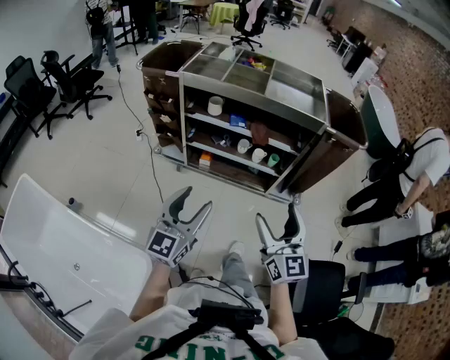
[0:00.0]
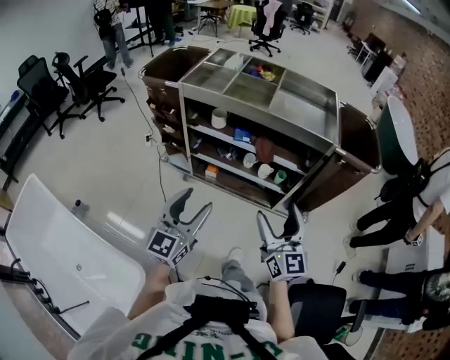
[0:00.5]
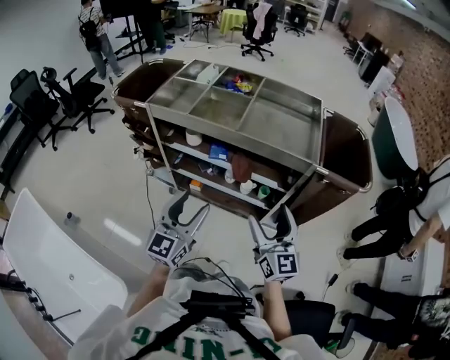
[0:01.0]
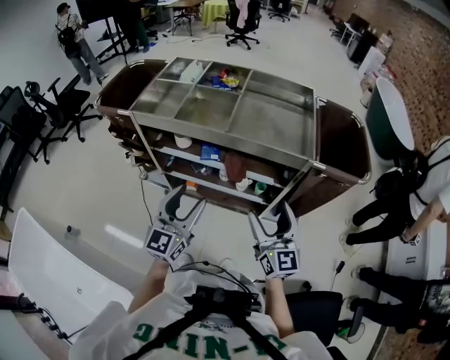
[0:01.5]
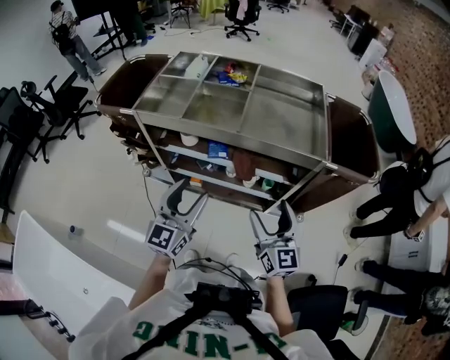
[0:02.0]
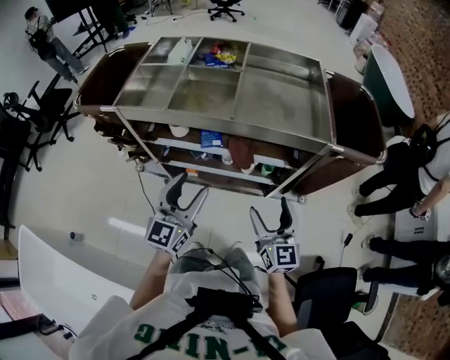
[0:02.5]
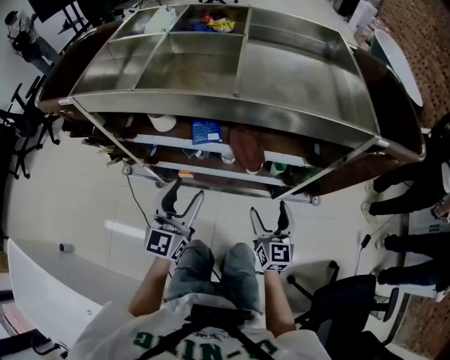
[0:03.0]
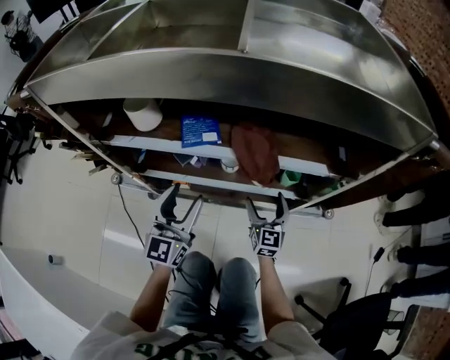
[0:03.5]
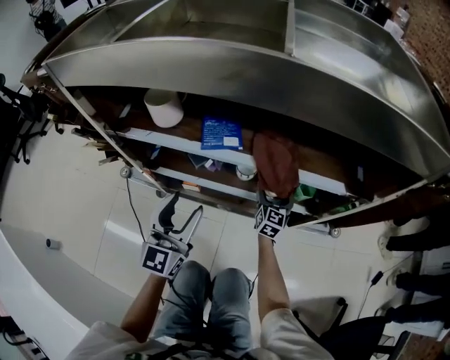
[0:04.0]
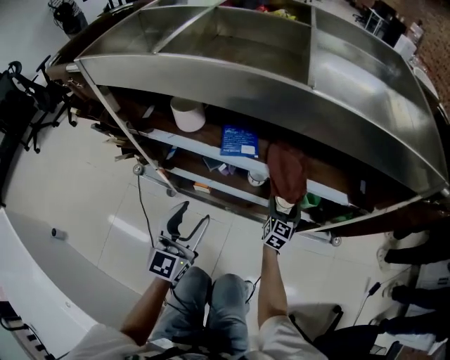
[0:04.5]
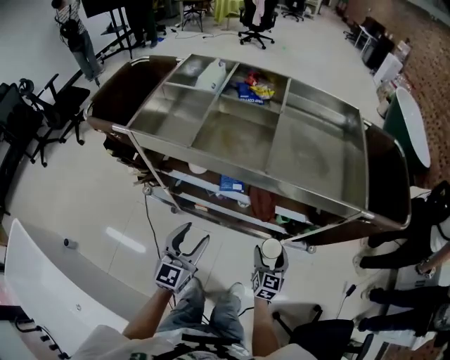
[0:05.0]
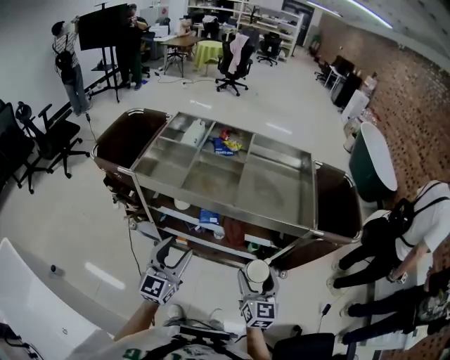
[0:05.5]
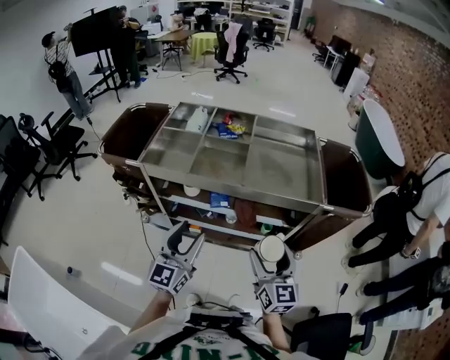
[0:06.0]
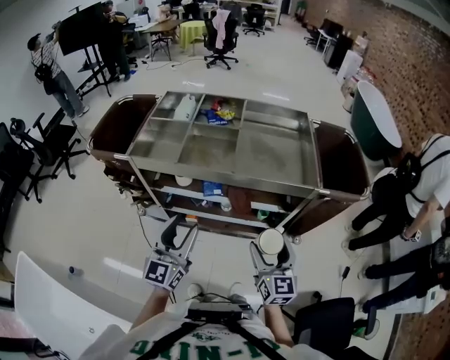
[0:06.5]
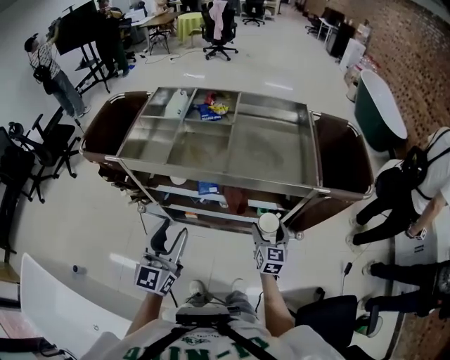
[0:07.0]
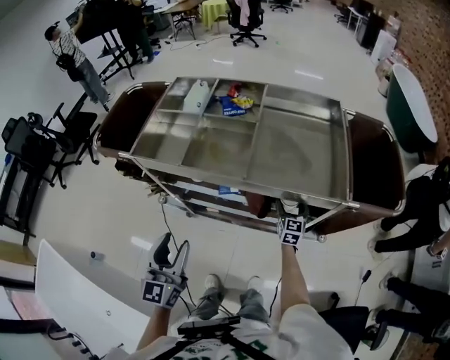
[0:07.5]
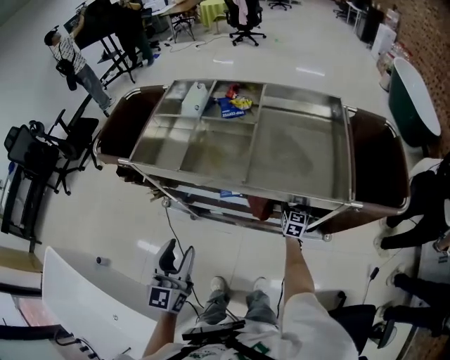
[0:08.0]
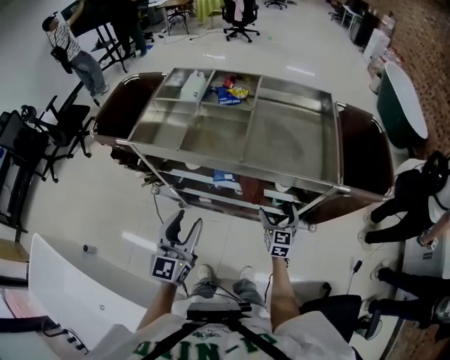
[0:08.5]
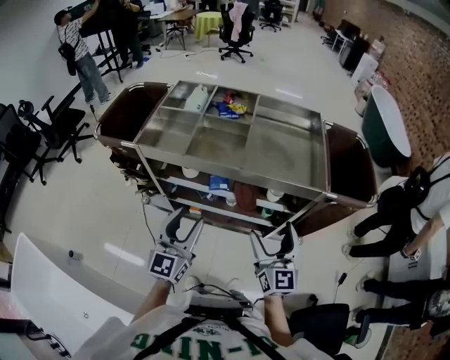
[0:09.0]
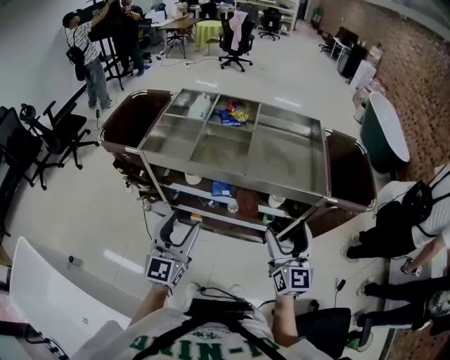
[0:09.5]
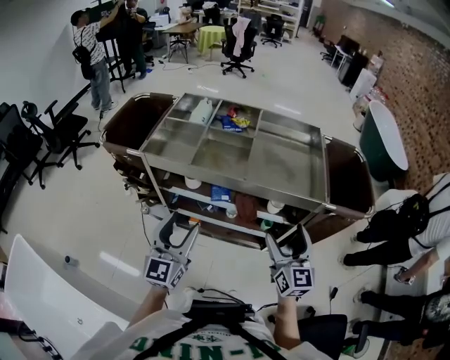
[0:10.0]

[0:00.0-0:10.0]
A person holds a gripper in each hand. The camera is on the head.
0:00.0 to 0:02.0: Both grippers travel together forward, roughly 30 cm.
0:02.0 to 0:04.0: The right gripper goes some 60 cm downward and forward, and turns by approximately 30 degrees; the left gripper shifts some 40 cm downward.
0:04.0 to 0:06.0: The left gripper shifts some 40 cm upward. Meanwhile the right gripper shifts roughly 70 cm upward and backward.
0:06.0 to 0:08.0: The left gripper heads downward, covering about 5 cm. Meanwhile the right gripper travels downward and forward by some 40 cm, and rotates roughly 20 degrees.
0:08.0 to 0:10.0: The right gripper moves upward and backward, some 40 cm, and swivels approximately 30 degrees, while the left gripper moves upward, some 5 cm.

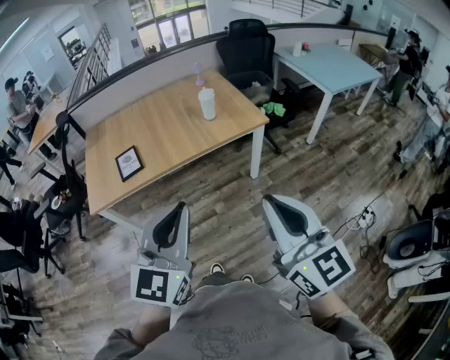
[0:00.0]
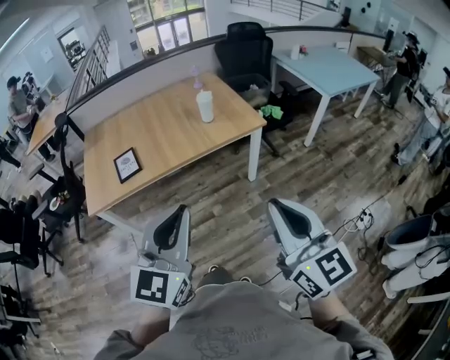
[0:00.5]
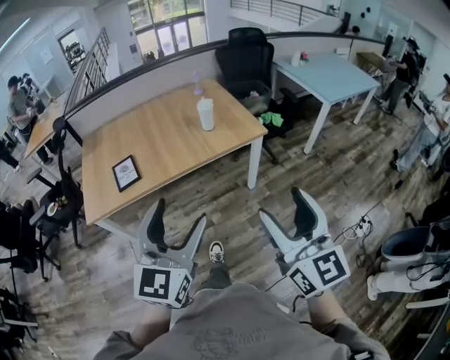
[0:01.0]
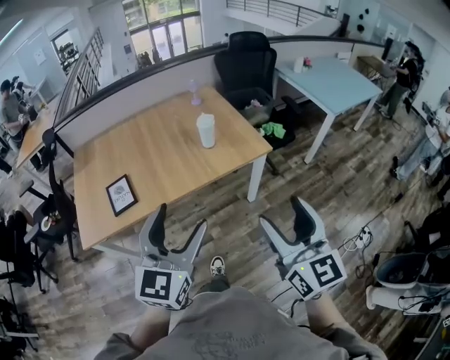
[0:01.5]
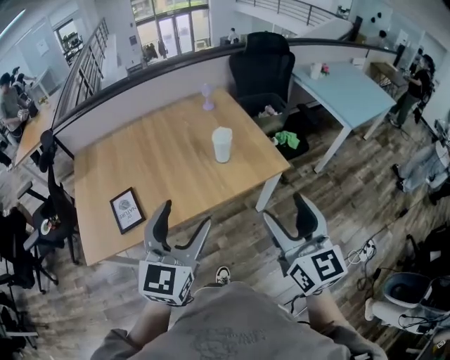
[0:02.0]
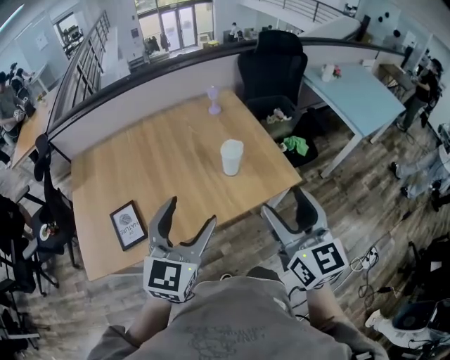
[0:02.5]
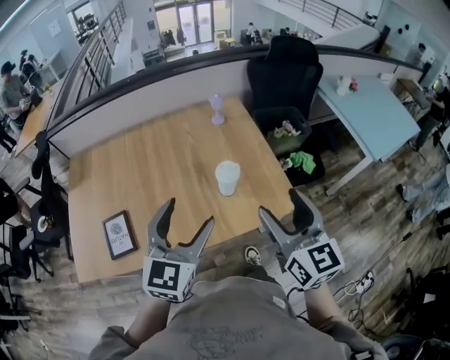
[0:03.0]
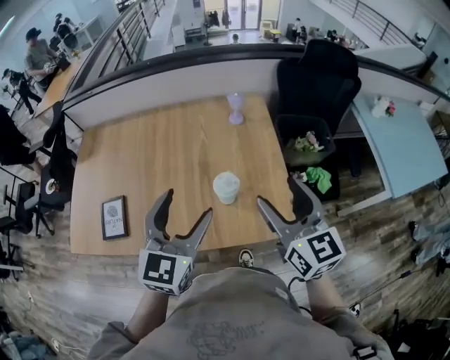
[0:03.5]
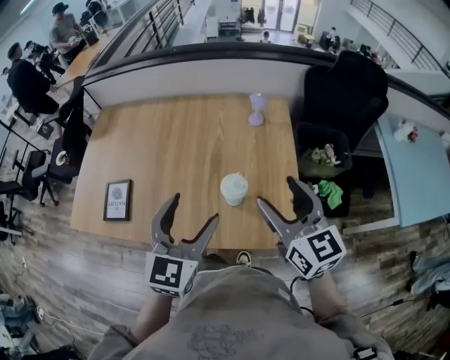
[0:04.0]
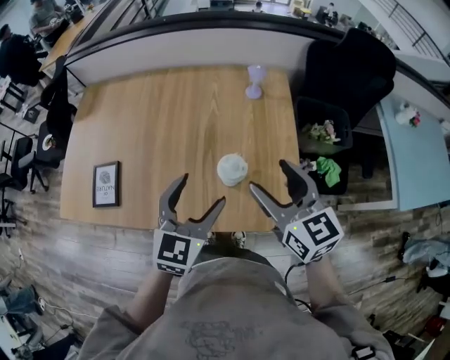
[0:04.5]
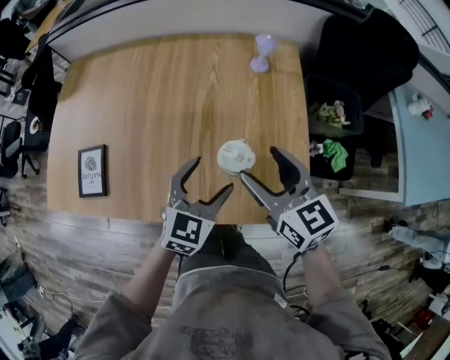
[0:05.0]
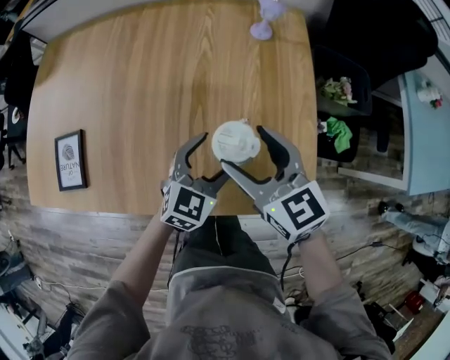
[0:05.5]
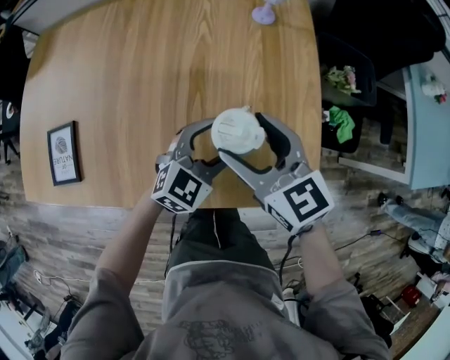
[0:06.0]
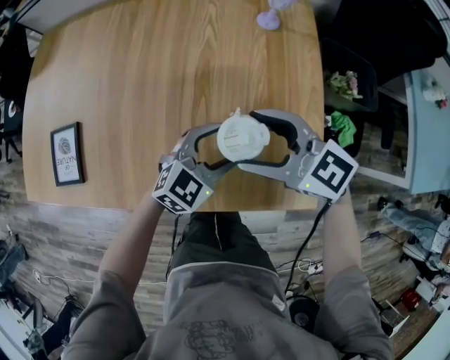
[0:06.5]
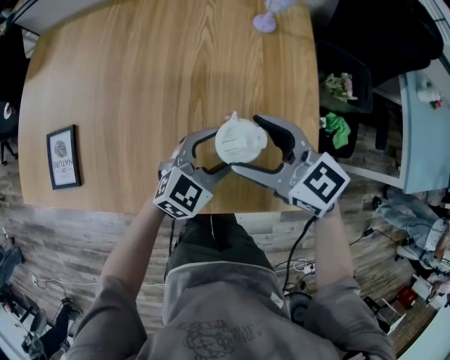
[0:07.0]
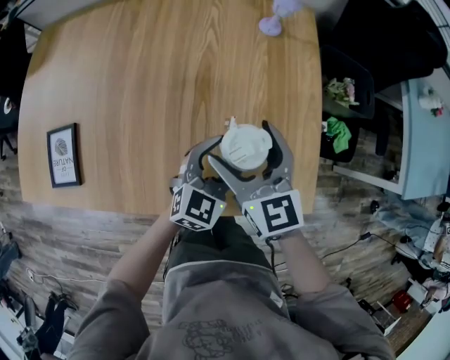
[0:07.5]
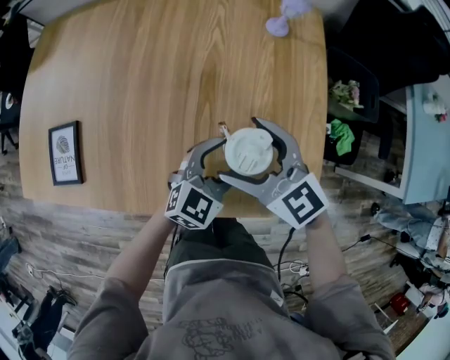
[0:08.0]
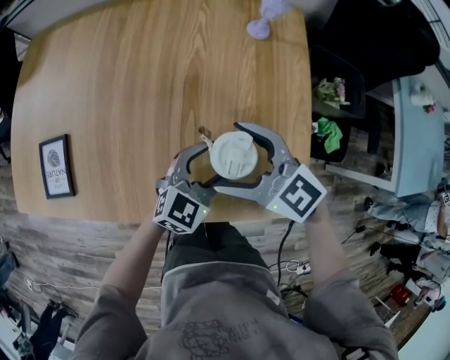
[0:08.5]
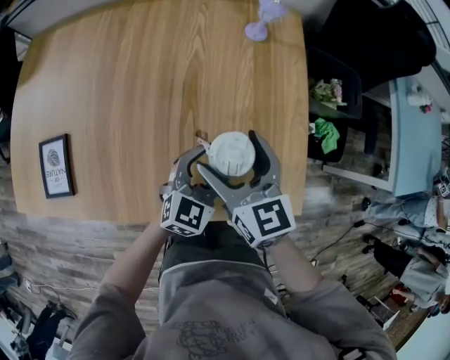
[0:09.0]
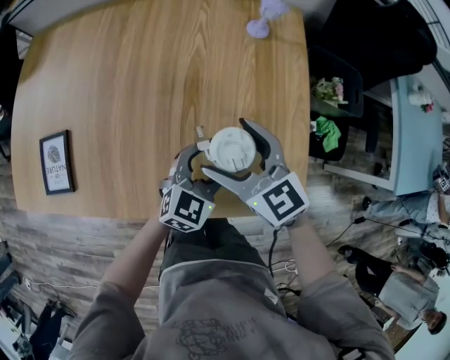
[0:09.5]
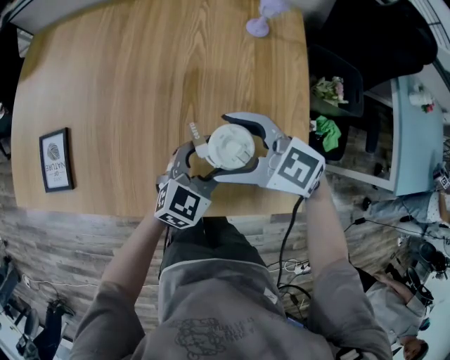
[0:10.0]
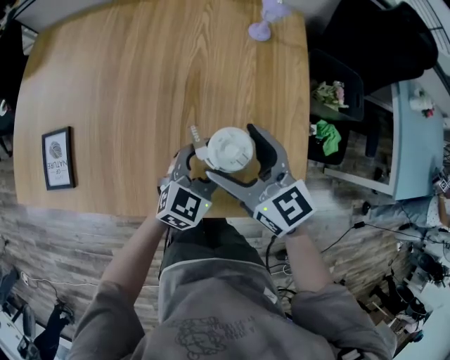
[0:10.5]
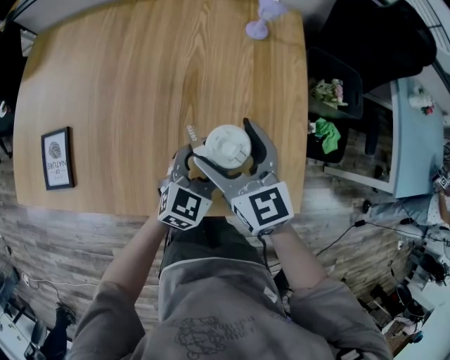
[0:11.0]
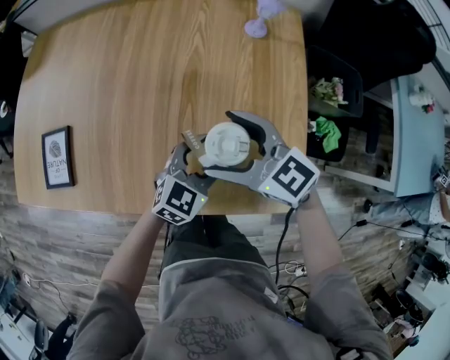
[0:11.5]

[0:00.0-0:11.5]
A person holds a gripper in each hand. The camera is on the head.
0:00.0 to 0:02.0: Both grippers move forward, approximately 30 cm. The right gripper opens up. The left gripper opens.
0:02.0 to 0:04.0: The left gripper ends up some 30 cm from where it was, and turns by roughly 30 degrees. Meanwhile the right gripper ends up some 40 cm from where it was, and rotates approximately 40 degrees.
0:04.0 to 0:06.0: The right gripper is displaced downward and to the left by approximately 25 cm. The left gripper heads downward, covering some 30 cm, and swivels roughly 30 degrees.

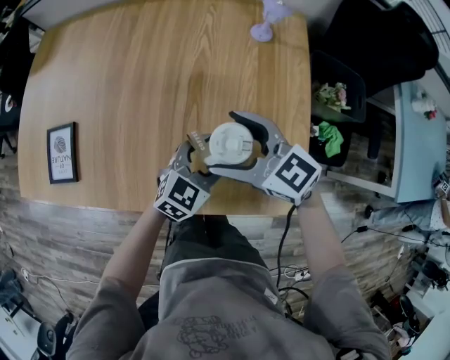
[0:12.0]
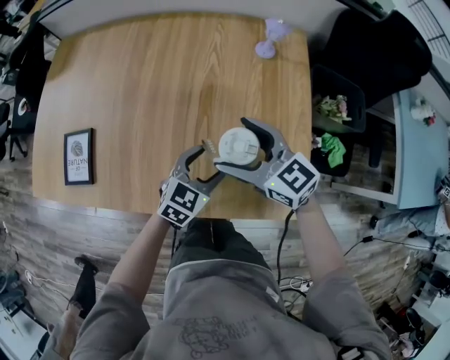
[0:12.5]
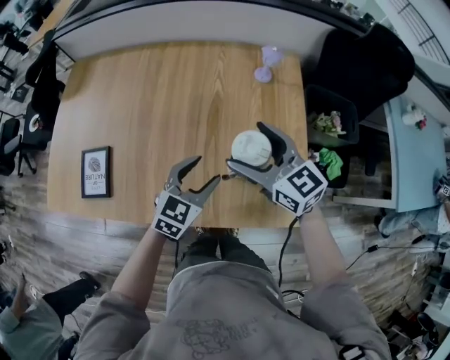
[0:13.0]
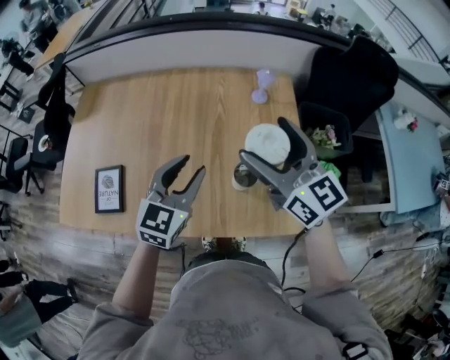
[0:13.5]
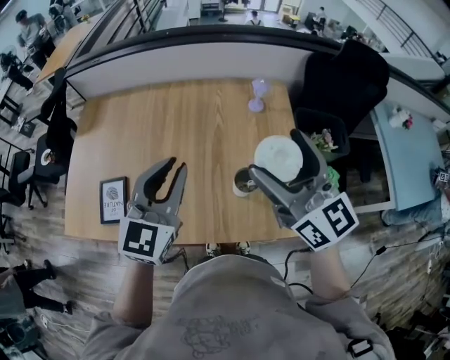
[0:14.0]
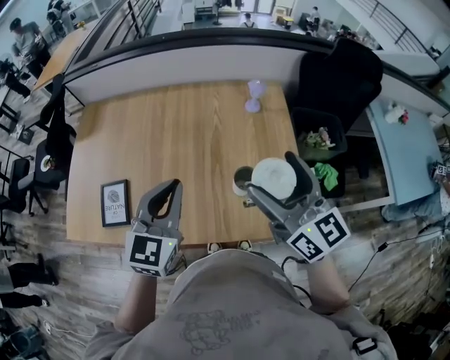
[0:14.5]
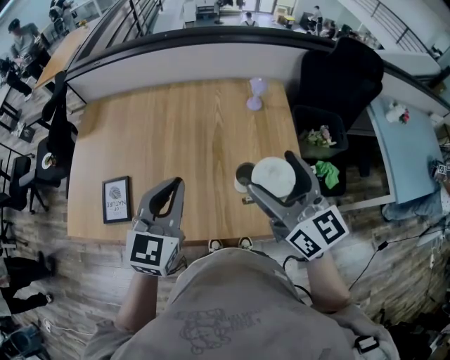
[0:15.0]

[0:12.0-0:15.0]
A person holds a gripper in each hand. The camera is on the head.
0:12.0 to 0:13.5: The right gripper heads upward, covering about 25 cm, and rotates some 40 degrees, while the left gripper moves upward and to the left, some 25 cm, turns by some 20 degrees, and closes.
0:13.5 to 0:15.0: The left gripper shifts approximately 10 cm upward and backward, and closes; the right gripper is displaced backward by approximately 10 cm.

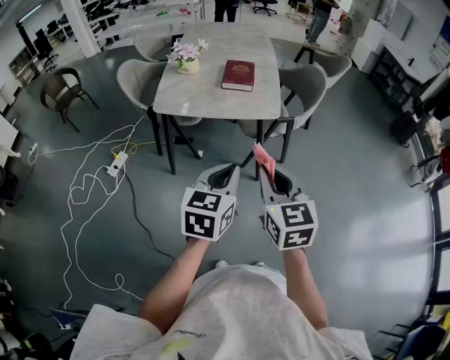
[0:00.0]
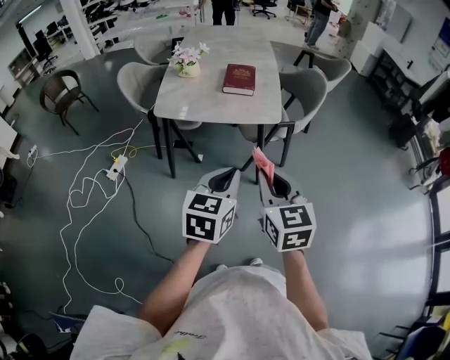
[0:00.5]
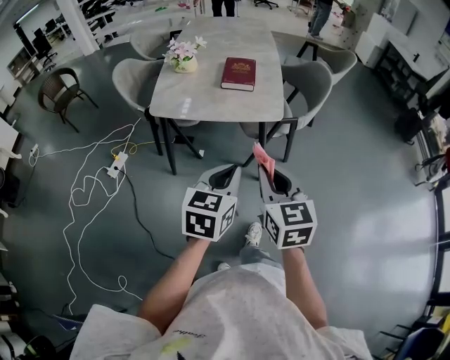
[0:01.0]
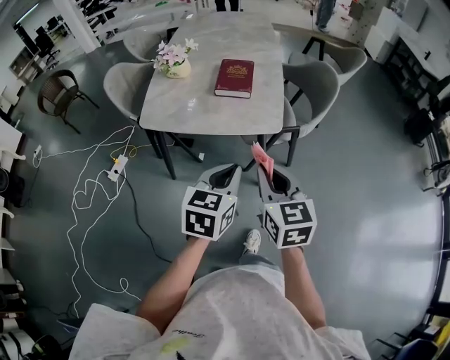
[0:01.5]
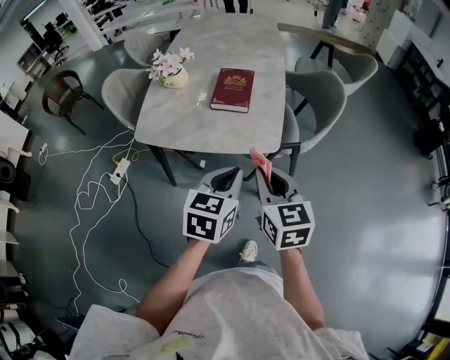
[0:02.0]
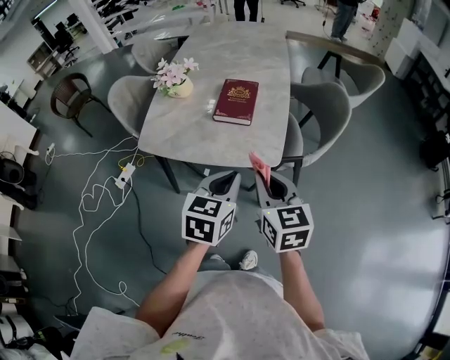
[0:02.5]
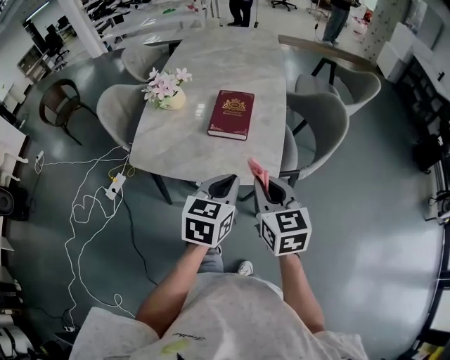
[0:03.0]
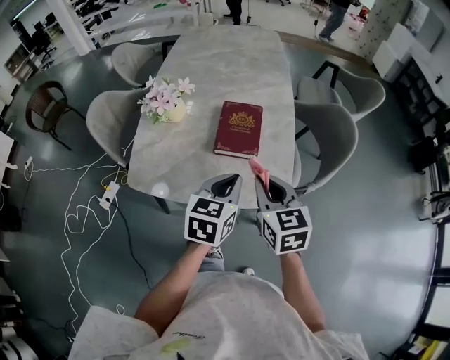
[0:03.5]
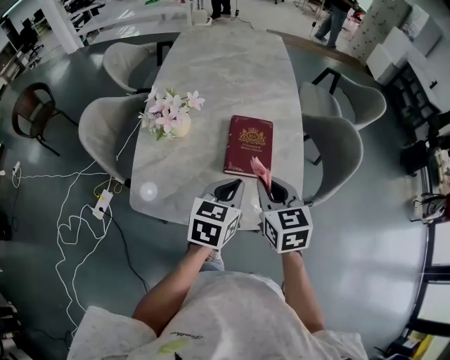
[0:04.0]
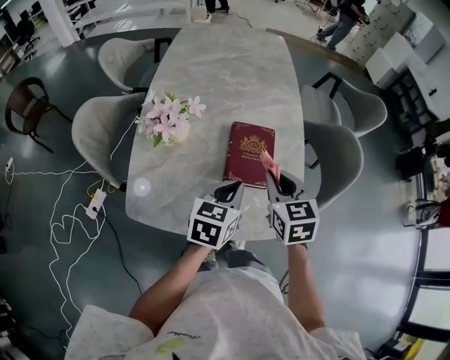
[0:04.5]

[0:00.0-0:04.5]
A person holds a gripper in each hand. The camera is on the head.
0:00.0 to 0:02.0: The grippers both shift forward by about 25 cm.
0:02.0 to 0:04.5: The left gripper is displaced forward and to the left by roughly 35 cm. The right gripper shifts some 35 cm forward.
